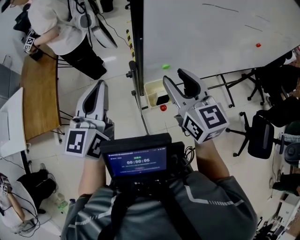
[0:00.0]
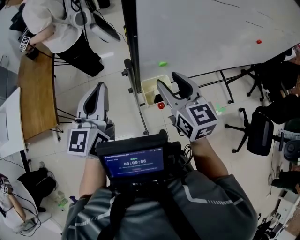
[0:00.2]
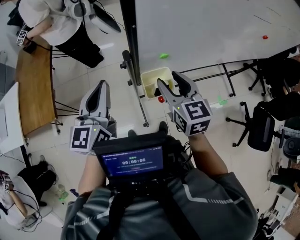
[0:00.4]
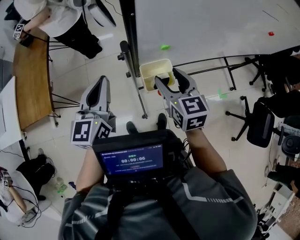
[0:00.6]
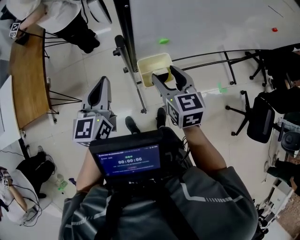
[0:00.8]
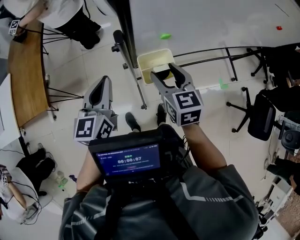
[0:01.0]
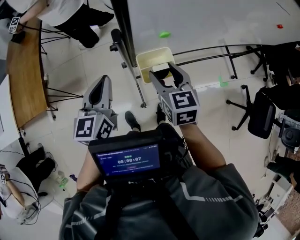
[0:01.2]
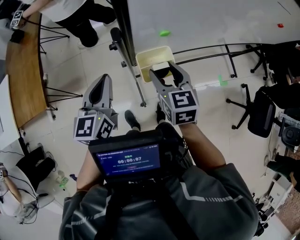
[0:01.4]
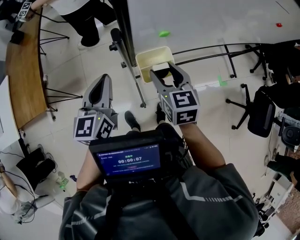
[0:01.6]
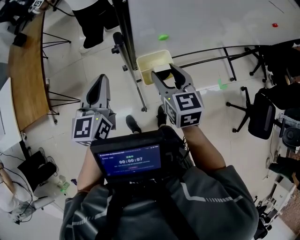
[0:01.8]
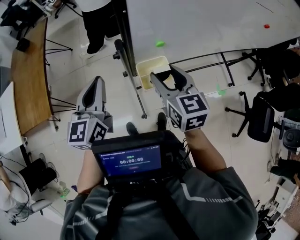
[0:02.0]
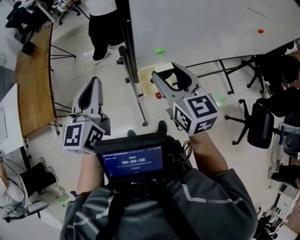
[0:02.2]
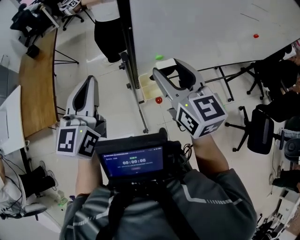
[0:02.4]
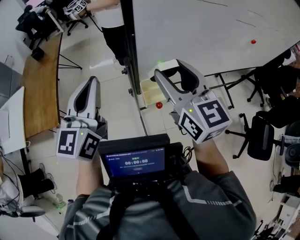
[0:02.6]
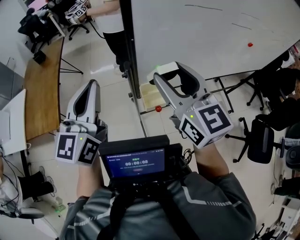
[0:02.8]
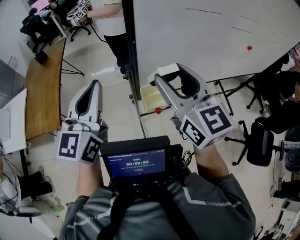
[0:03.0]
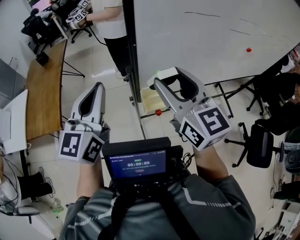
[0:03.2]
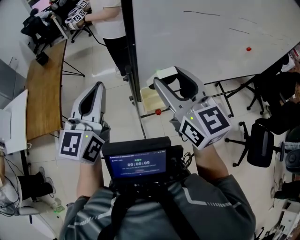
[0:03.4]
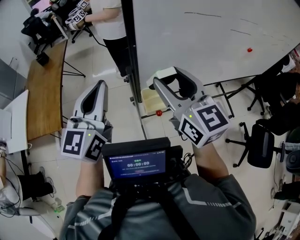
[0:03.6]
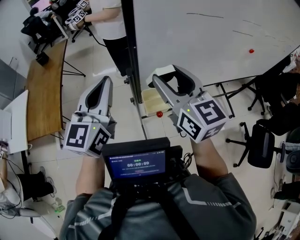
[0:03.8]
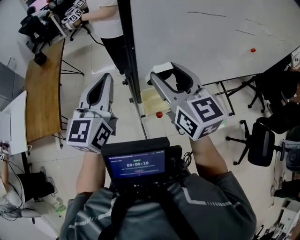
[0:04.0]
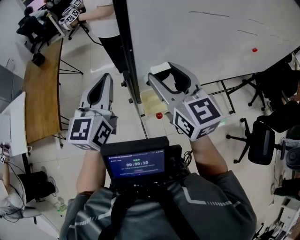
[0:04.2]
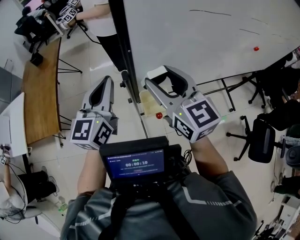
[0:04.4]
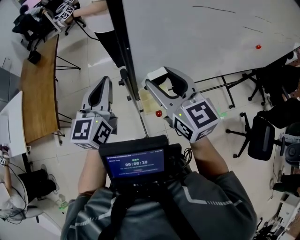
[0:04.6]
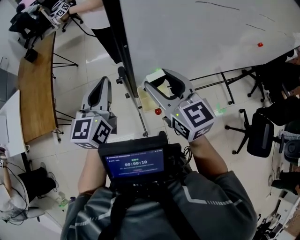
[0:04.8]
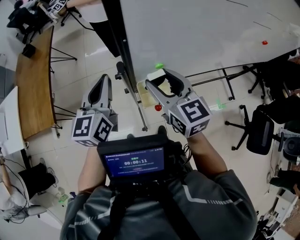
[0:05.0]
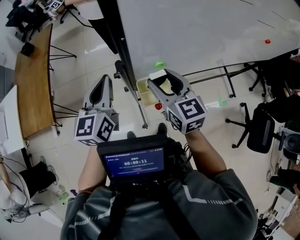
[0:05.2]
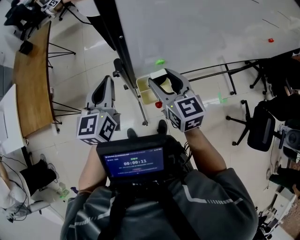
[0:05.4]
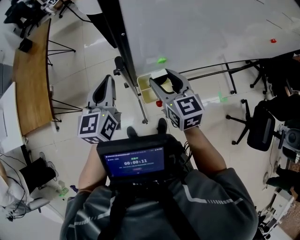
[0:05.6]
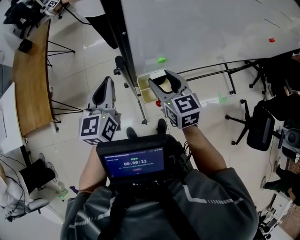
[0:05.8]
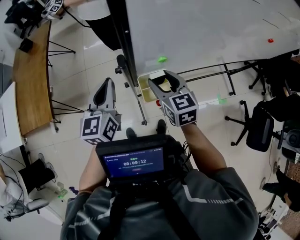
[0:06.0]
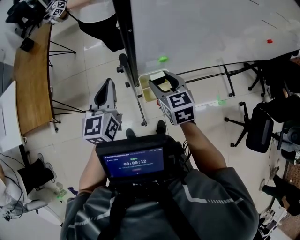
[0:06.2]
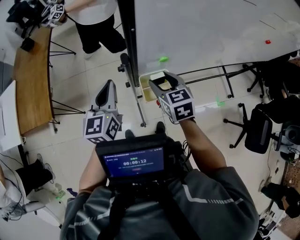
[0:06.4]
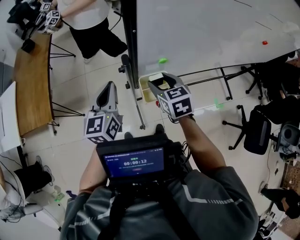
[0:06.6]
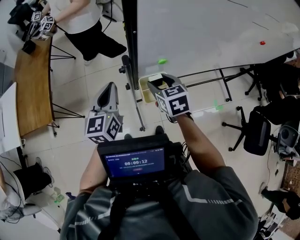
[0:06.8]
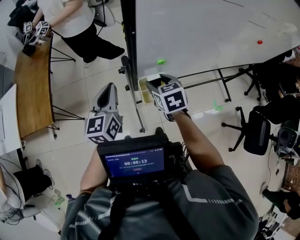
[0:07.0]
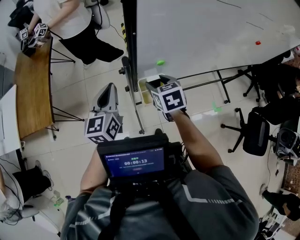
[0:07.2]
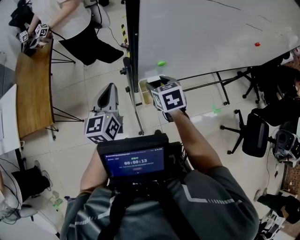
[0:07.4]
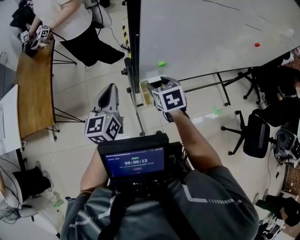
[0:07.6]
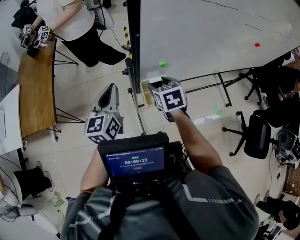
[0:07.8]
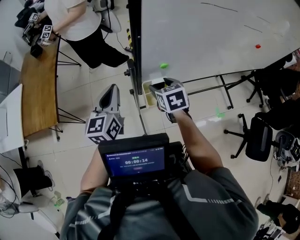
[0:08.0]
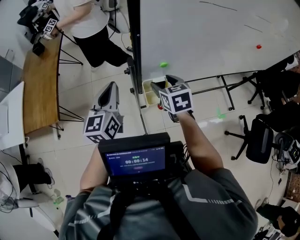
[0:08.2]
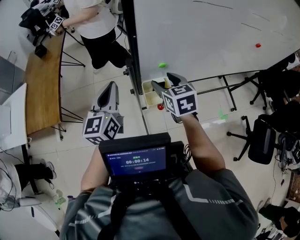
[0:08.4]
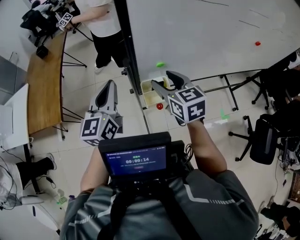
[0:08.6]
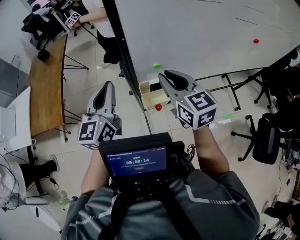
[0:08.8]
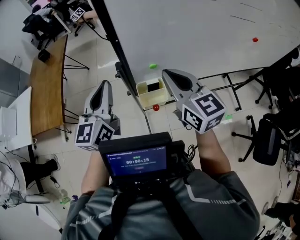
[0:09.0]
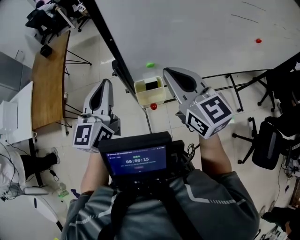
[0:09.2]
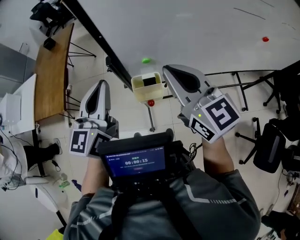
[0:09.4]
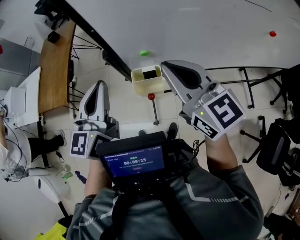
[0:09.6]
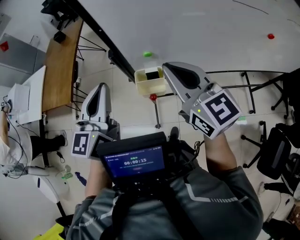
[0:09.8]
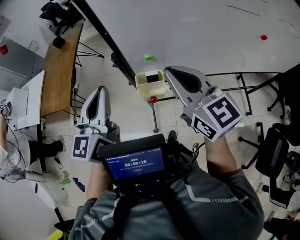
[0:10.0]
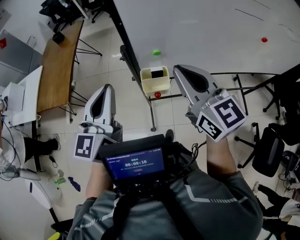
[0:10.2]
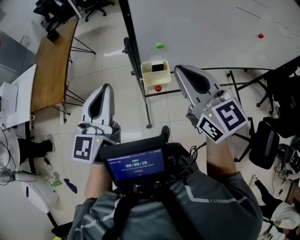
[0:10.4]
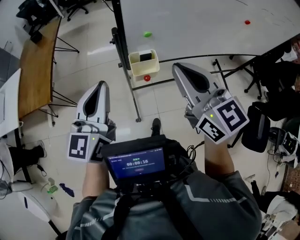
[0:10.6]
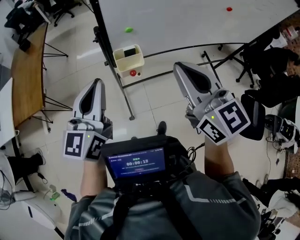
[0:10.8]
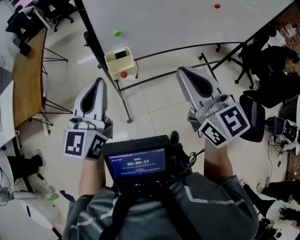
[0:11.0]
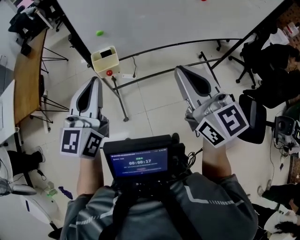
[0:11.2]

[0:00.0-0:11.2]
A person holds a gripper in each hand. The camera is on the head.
0:00.0 to 0:01.6: Both grippers travel together downward, some 20 cm. The right gripper swivels approximately 20 degrees.
0:01.6 to 0:03.2: Both grippers move upward, roughly 25 cm. The left gripper turns by some 20 degrees, while the right gripper changes its angle by some 30 degrees.
0:03.2 to 0:04.8: The two grippers go roughly 15 cm downward and forward.
0:04.8 to 0:06.4: The right gripper moves downward, roughly 15 cm, and changes its angle by approximately 20 degrees. Meanwhile the left gripper moves downward, approximately 10 cm.
0:06.4 to 0:08.0: The grippers move only a little.
0:08.0 to 0:09.6: The left gripper is displaced upward, to the right and backward by some 15 cm; the right gripper heads upward, covering approximately 25 cm, angles its fingers upward, by about 40 degrees, and closes up.
0:09.6 to 0:11.2: Both grippers move backward and to the right, some 25 cm.

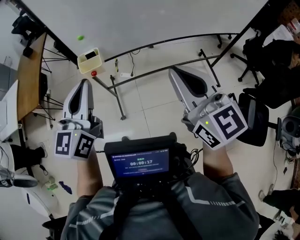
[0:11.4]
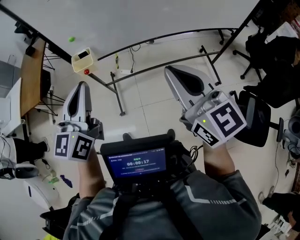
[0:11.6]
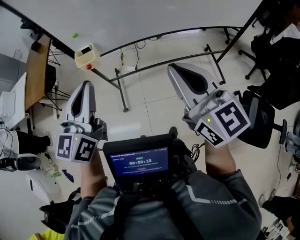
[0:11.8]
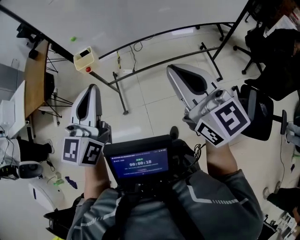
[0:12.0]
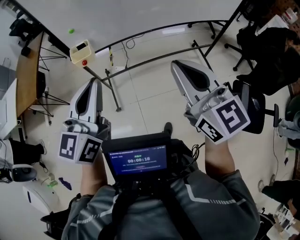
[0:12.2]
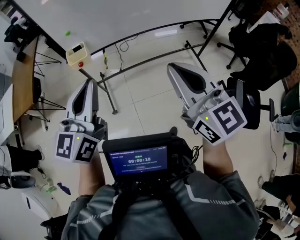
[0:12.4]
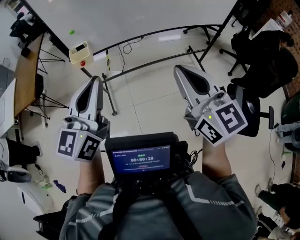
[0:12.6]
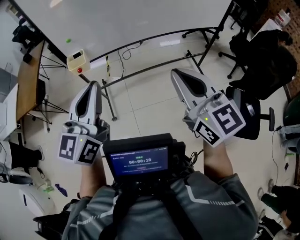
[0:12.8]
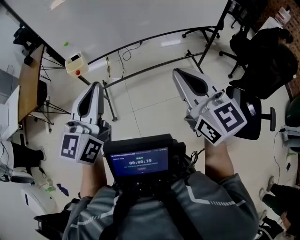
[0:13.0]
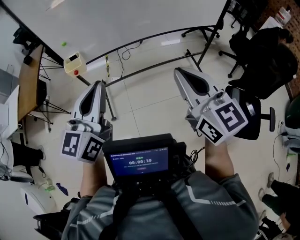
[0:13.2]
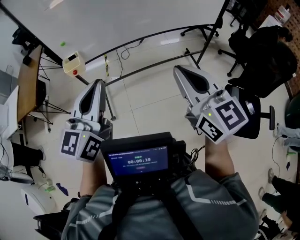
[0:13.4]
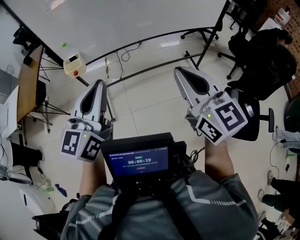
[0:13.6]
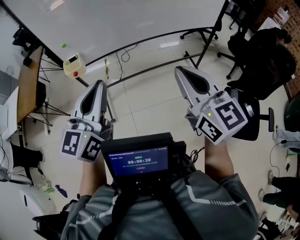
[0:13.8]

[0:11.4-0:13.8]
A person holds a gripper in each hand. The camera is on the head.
0:11.4 to 0:12.6: Both grippers move backward and to the right, some 20 cm.
0:12.6 to 0:13.8: The grippers both shift to the right by about 10 cm.

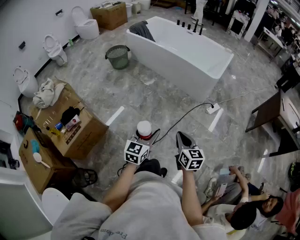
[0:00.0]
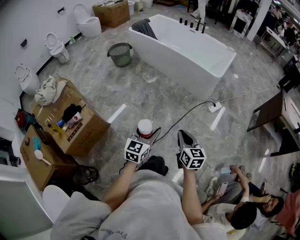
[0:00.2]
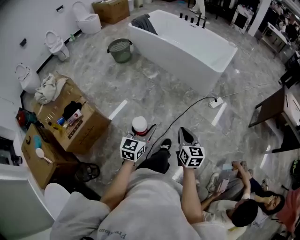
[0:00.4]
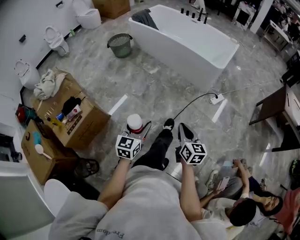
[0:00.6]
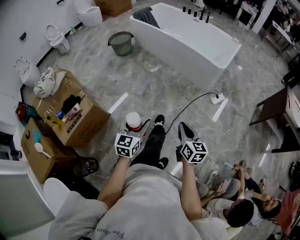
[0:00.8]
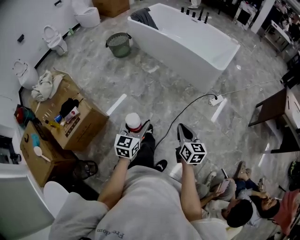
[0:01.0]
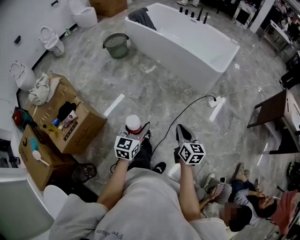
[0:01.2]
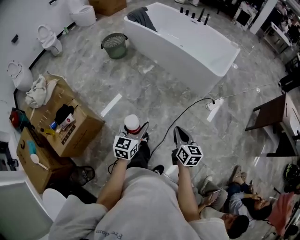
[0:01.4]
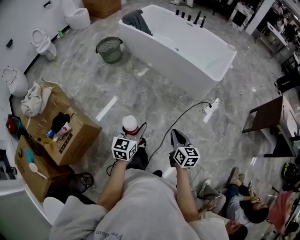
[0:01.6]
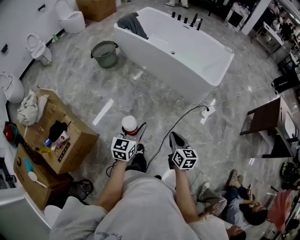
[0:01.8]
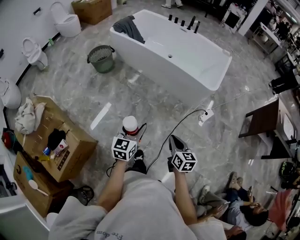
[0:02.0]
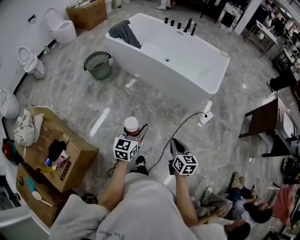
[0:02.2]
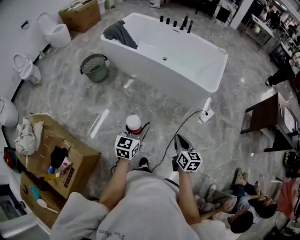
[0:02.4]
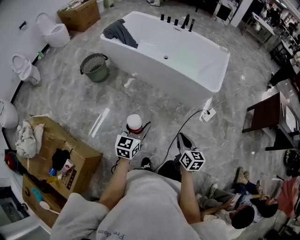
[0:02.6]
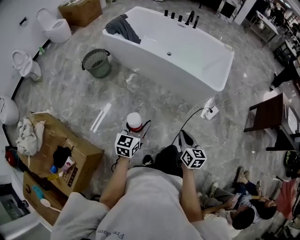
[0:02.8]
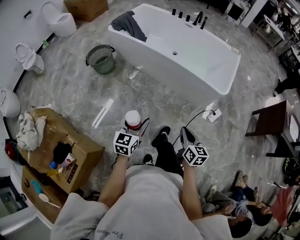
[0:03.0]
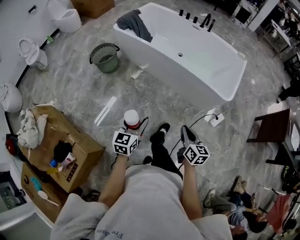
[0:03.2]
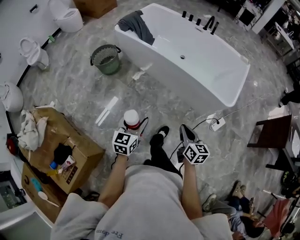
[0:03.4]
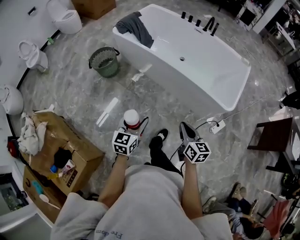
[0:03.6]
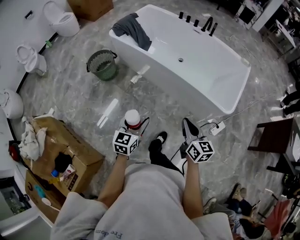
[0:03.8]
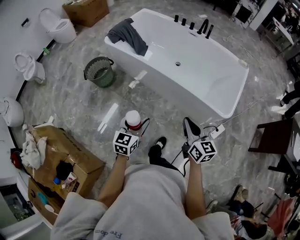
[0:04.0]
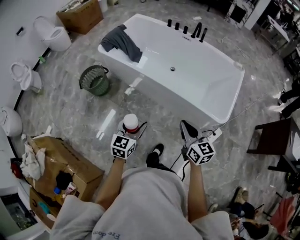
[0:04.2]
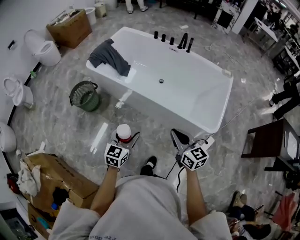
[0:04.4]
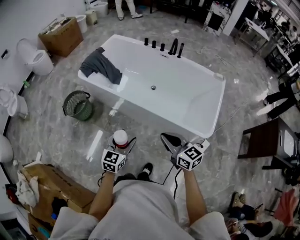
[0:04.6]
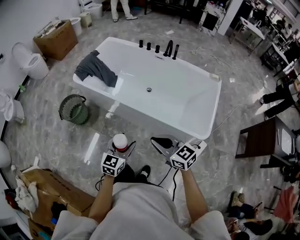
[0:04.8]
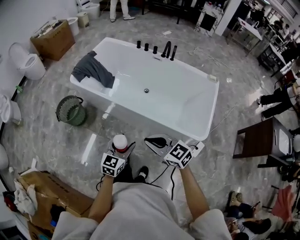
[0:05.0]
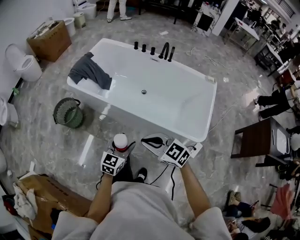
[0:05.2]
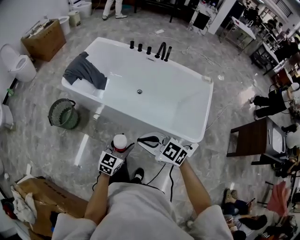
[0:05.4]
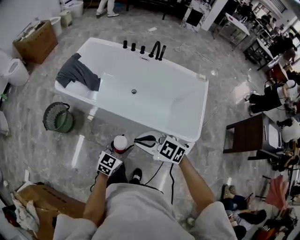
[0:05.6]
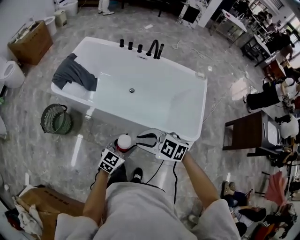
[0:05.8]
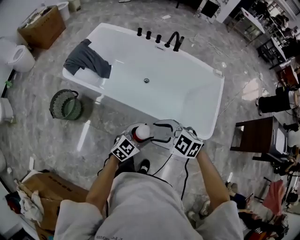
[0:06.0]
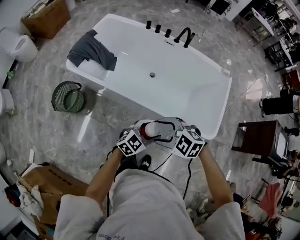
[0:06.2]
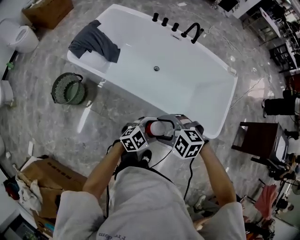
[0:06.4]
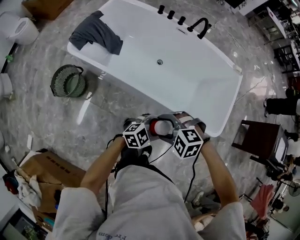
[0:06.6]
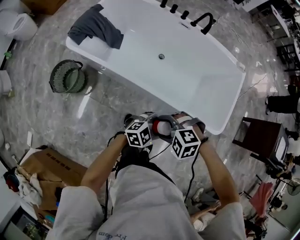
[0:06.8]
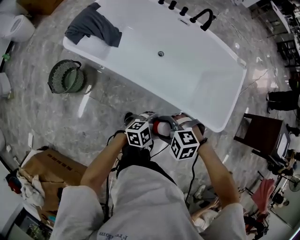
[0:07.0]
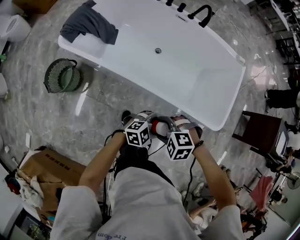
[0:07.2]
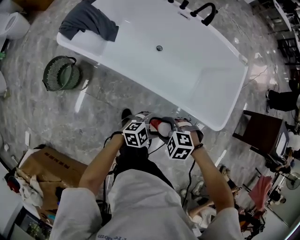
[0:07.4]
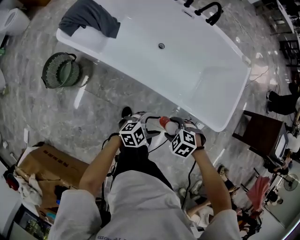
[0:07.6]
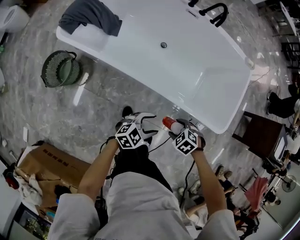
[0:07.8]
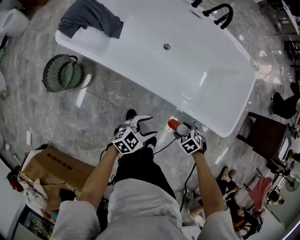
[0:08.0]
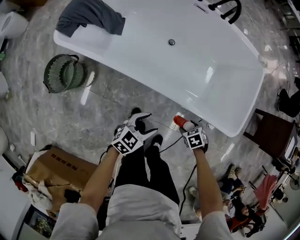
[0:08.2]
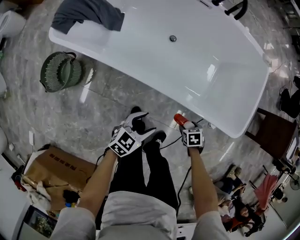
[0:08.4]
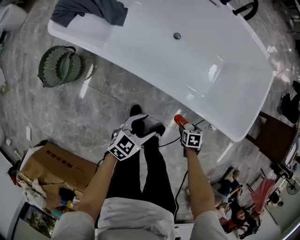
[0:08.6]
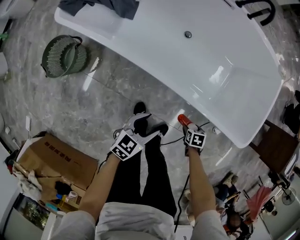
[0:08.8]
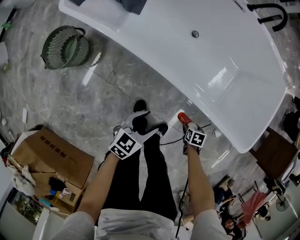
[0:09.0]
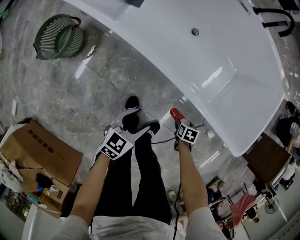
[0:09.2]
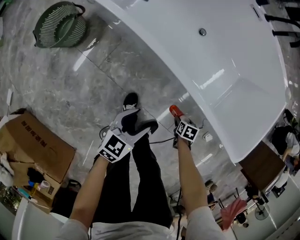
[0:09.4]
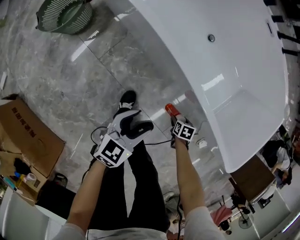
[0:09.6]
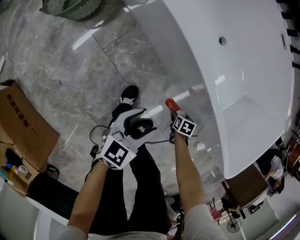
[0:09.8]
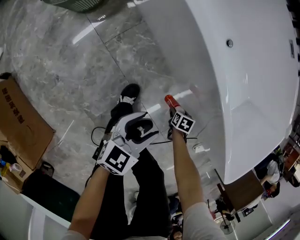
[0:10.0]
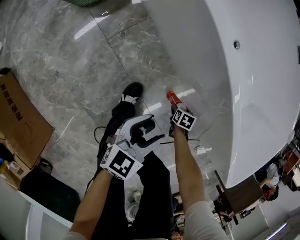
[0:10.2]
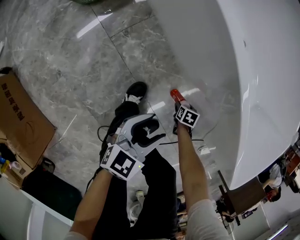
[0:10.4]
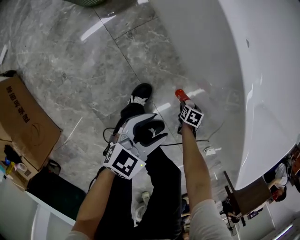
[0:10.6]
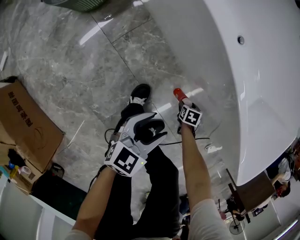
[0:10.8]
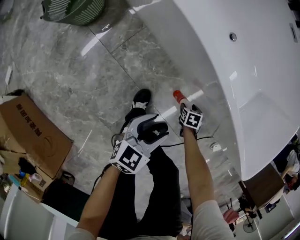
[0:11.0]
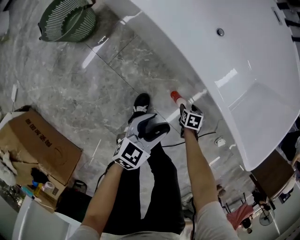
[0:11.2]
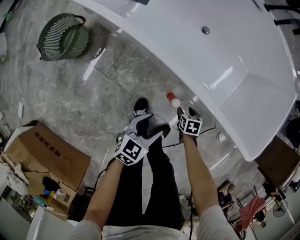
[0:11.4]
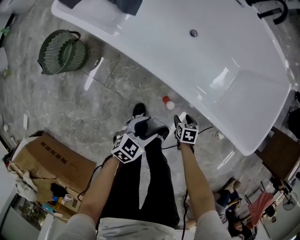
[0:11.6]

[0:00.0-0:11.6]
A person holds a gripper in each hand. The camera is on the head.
0:00.0 to 0:01.4: The left gripper moves forward and to the left, approximately 15 cm; the right gripper heads forward, covering some 10 cm.
0:01.4 to 0:02.8: Both grippers travel together forward, some 25 cm.
0:02.8 to 0:04.4: The grippers both shift forward by approximately 35 cm. The right gripper swivels about 20 degrees.
0:04.4 to 0:05.8: The left gripper shifts some 15 cm to the right and forward, and changes its angle by approximately 30 degrees, while the right gripper moves forward and to the left, approximately 15 cm, and turns by some 50 degrees.
0:05.8 to 0:07.2: The left gripper is displaced downward by approximately 10 cm, and swivels about 40 degrees; the right gripper moves downward, approximately 15 cm, tilts its fingers about 30 degrees downward, and opens.
0:07.2 to 0:08.8: The left gripper goes about 15 cm downward, and turns by roughly 50 degrees. The right gripper is displaced downward by approximately 35 cm, and twists some 90 degrees clockwise, seen from behind.
0:08.8 to 0:10.2: The left gripper moves downward, approximately 15 cm, and changes its angle by roughly 30 degrees. The right gripper moves downward, about 25 cm.
0:10.2 to 0:11.6: The left gripper goes about 5 cm upward, and changes its angle by approximately 30 degrees, while the right gripper shifts roughly 20 cm upward.
